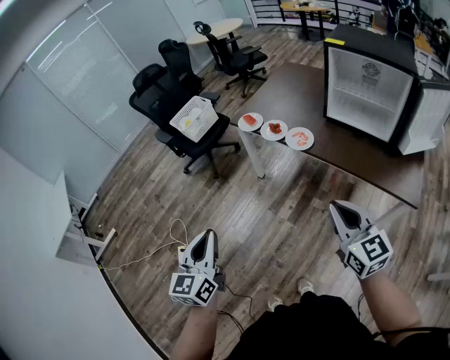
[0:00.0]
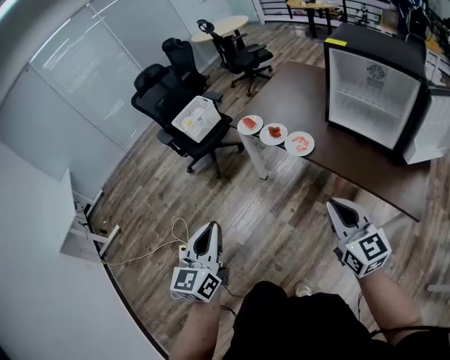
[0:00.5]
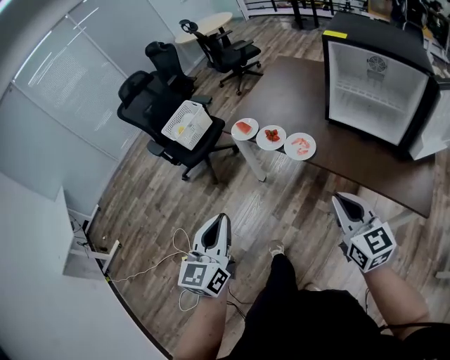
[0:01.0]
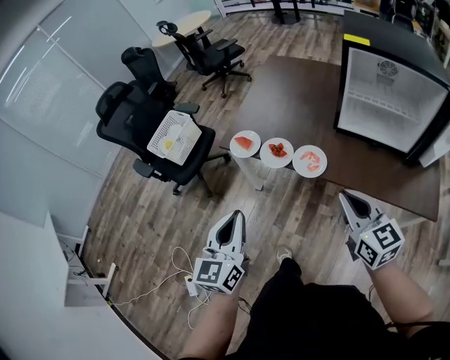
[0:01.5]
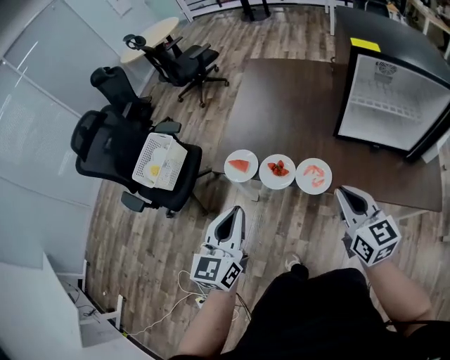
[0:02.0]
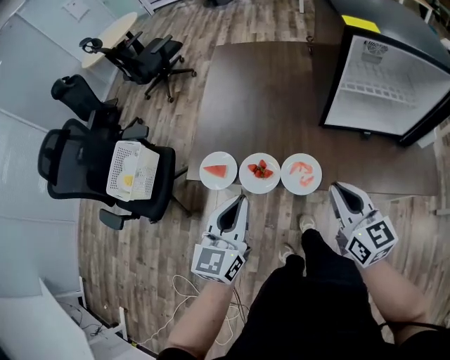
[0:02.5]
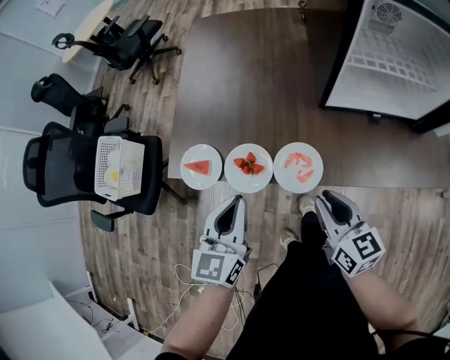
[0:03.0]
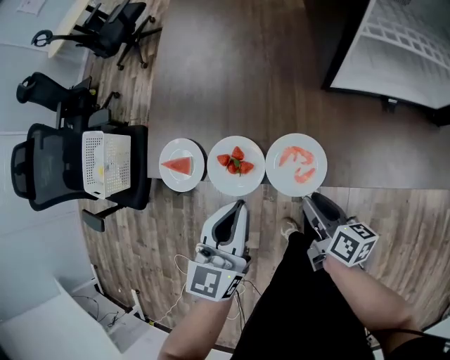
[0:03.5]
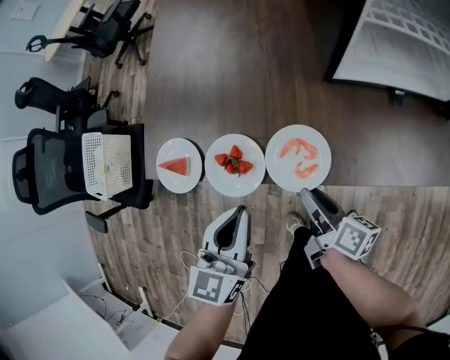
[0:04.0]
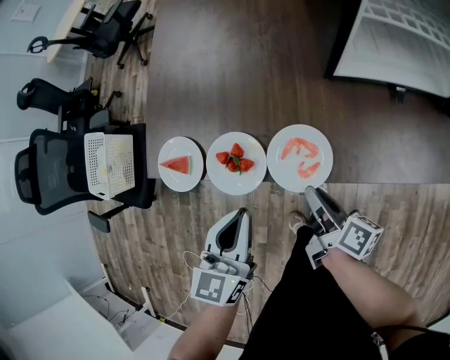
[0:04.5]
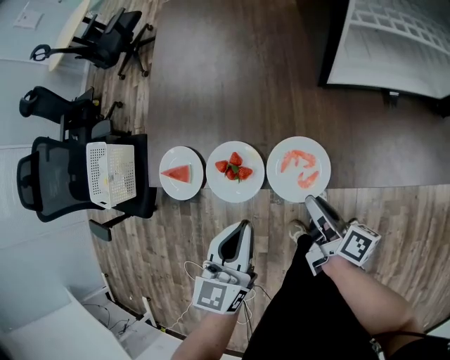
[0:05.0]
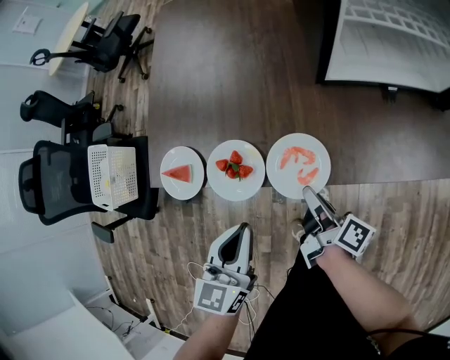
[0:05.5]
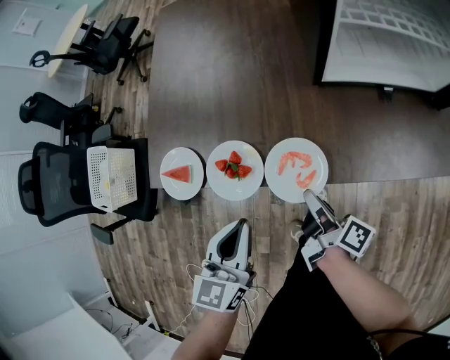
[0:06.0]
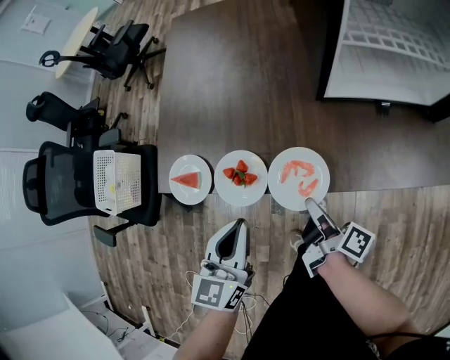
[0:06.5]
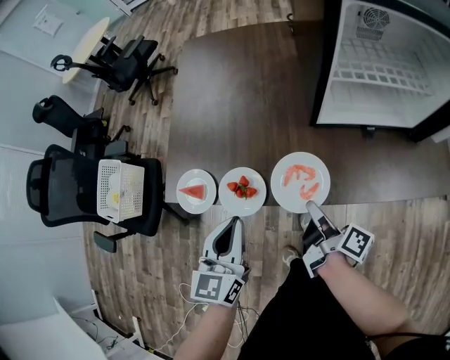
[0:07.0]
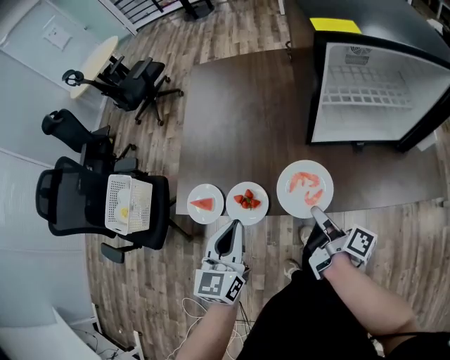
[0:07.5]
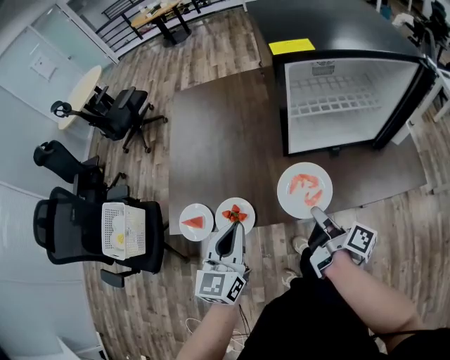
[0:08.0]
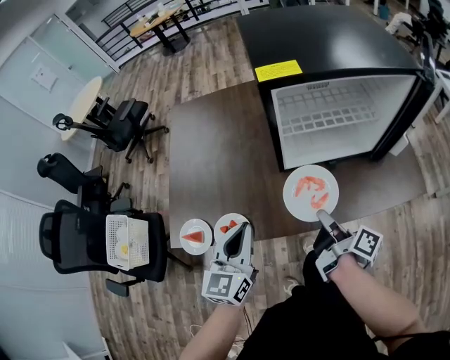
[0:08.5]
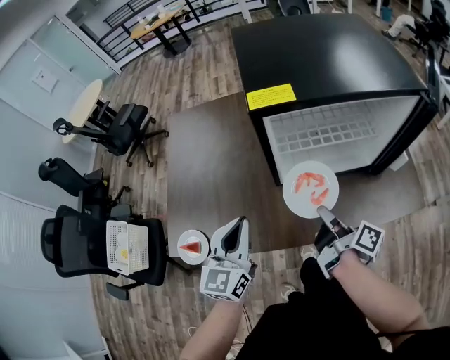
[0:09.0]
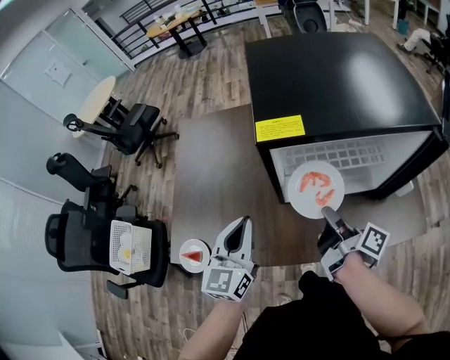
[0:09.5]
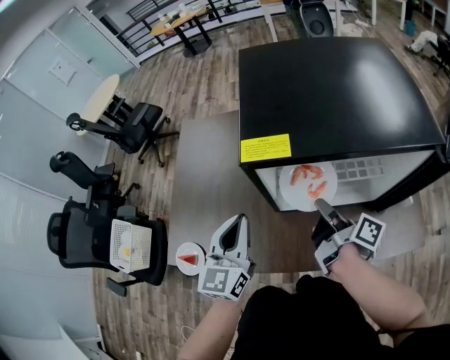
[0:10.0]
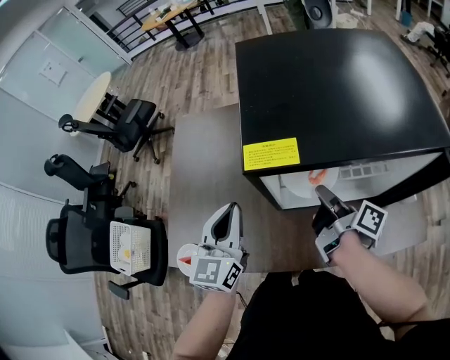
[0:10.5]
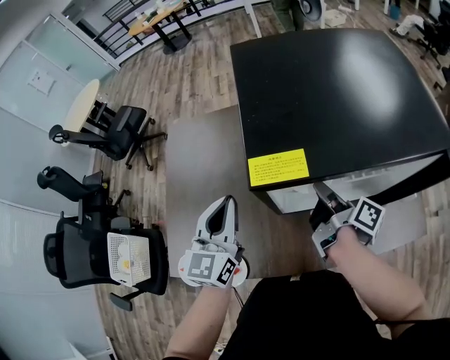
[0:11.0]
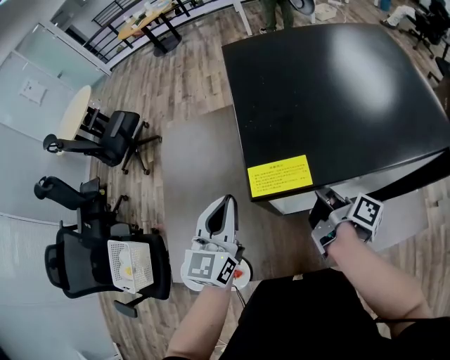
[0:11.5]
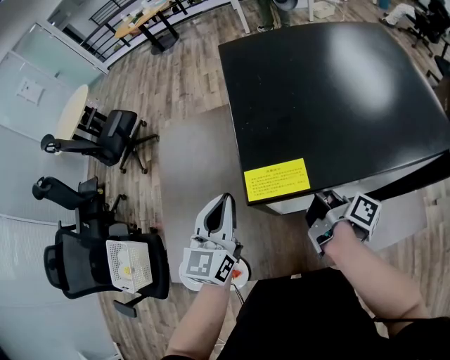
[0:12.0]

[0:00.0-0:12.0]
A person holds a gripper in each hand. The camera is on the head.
0:00.0 to 0:02.0: The left gripper shifts by roughly 50 cm, and rotates roughly 30 degrees.
0:02.0 to 0:04.0: The left gripper shifts approximately 20 cm downward.
0:06.0 to 0:08.0: The left gripper goes about 15 cm upward.
0:08.0 to 0:10.0: The left gripper ends up about 25 cm from where it was.
0:10.0 to 0:12.0: The left gripper changes place by approximately 10 cm.

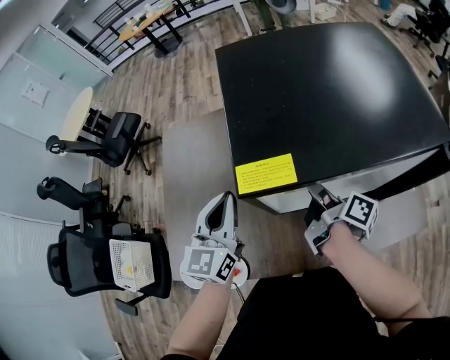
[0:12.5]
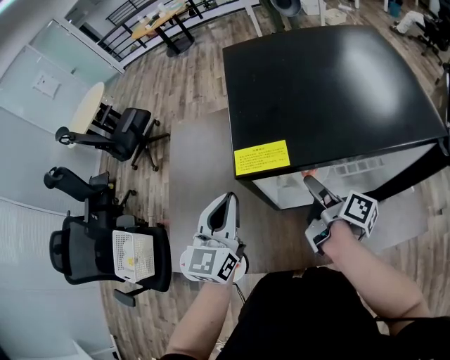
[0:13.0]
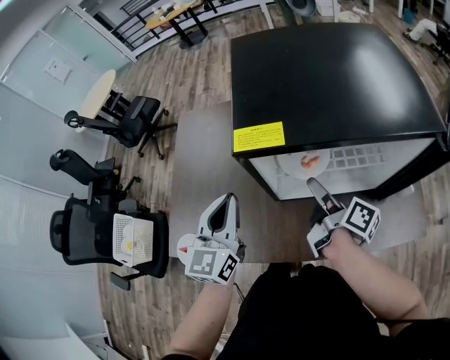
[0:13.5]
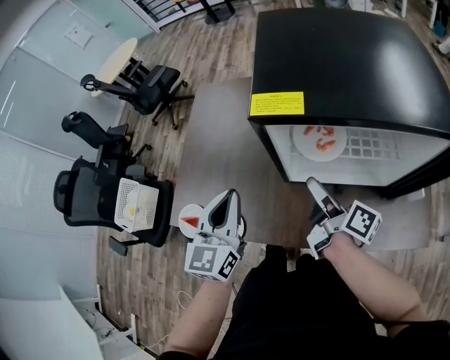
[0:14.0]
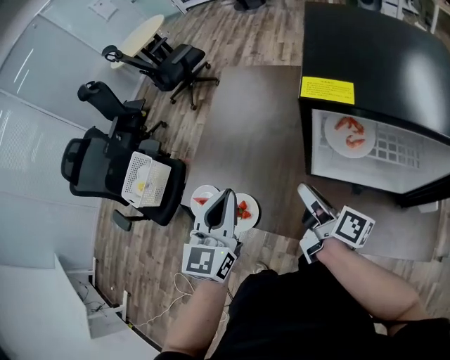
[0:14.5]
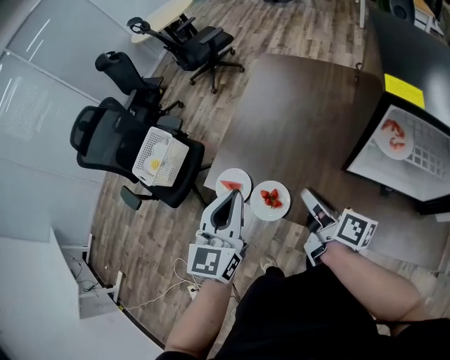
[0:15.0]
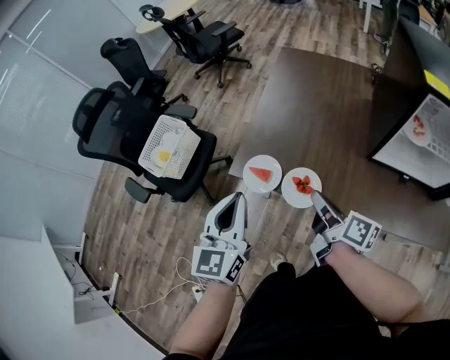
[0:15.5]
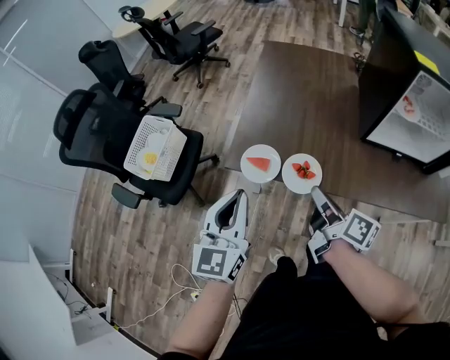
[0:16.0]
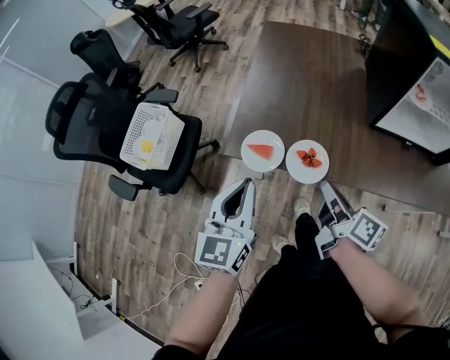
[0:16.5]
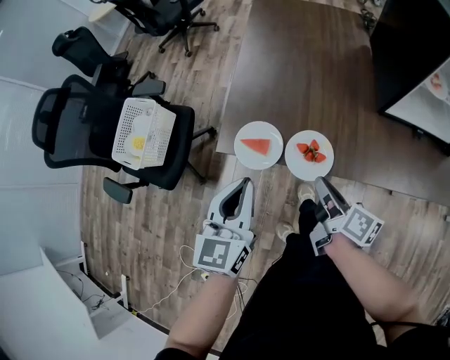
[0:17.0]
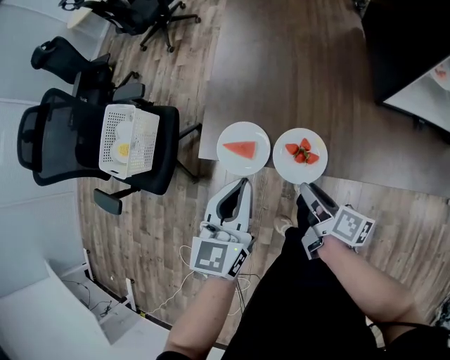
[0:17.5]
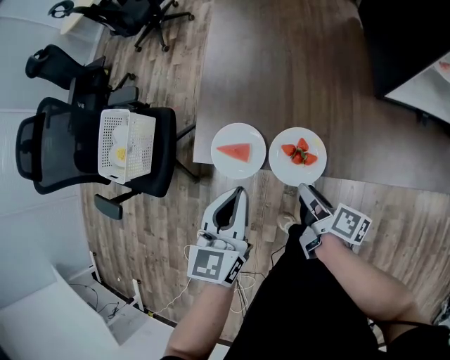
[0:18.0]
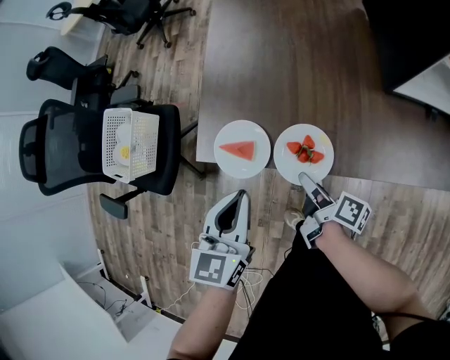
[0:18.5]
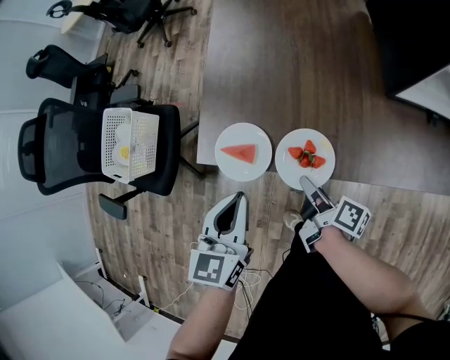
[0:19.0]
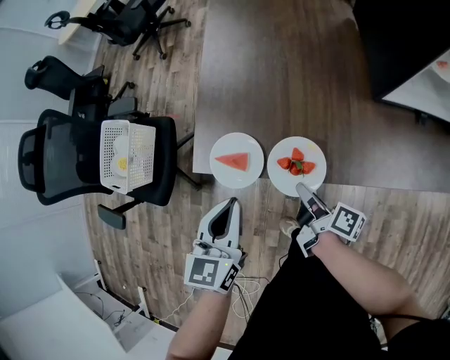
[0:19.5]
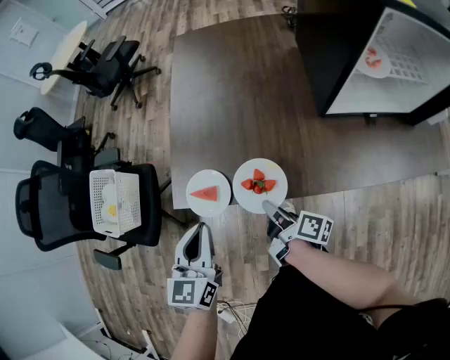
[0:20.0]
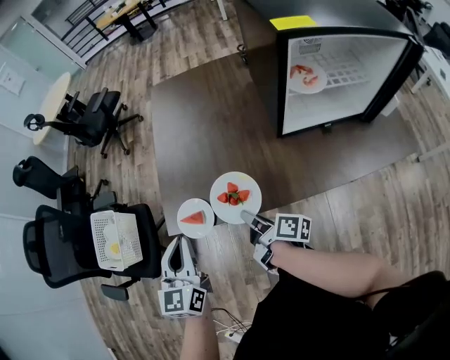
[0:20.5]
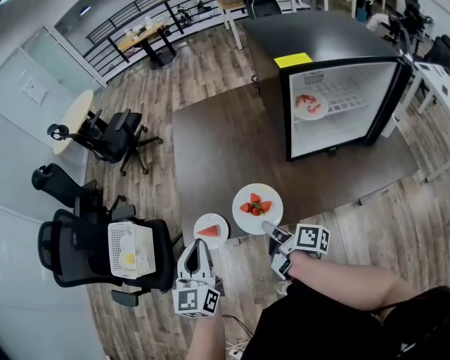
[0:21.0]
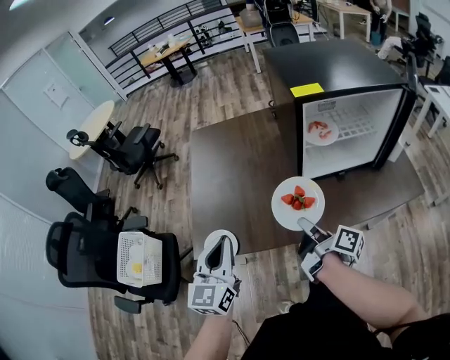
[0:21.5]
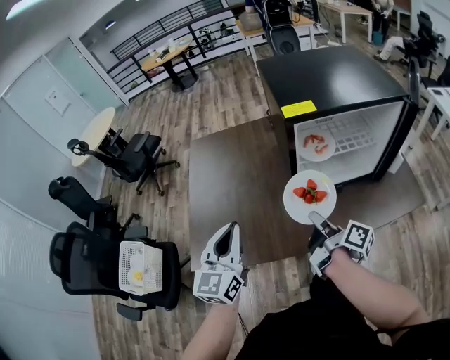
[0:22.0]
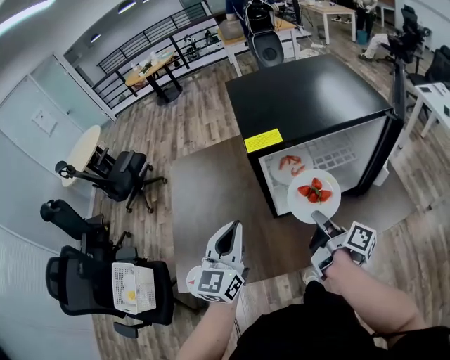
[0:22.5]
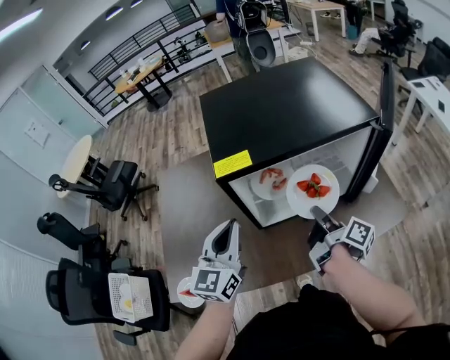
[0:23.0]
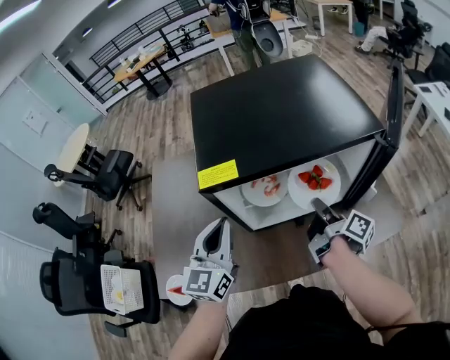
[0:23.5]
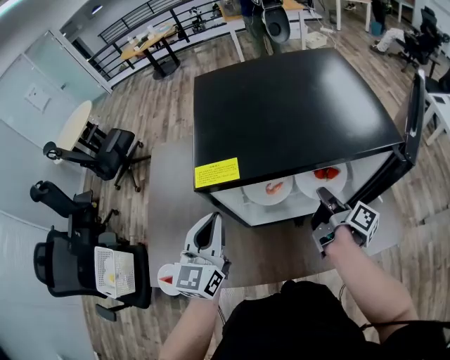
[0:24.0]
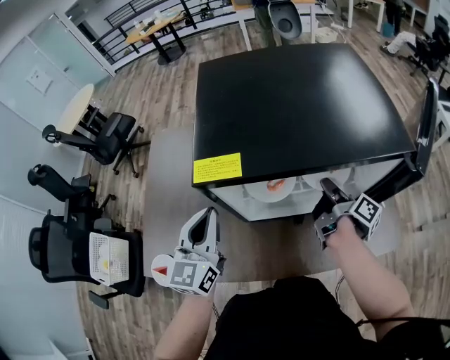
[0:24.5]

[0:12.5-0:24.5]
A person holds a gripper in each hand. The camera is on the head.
0:12.5 to 0:14.5: The left gripper changes place by some 20 cm, and turns by roughly 20 degrees.
0:14.5 to 0:16.5: The left gripper moves roughly 30 cm.
0:16.5 to 0:18.5: The left gripper moves downward, some 15 cm.
0:18.5 to 0:20.5: The left gripper shifts some 15 cm upward.
0:20.5 to 0:22.5: The left gripper changes place by some 30 cm, and rotates approximately 20 degrees.
0:22.5 to 0:24.5: The left gripper moves some 10 cm.

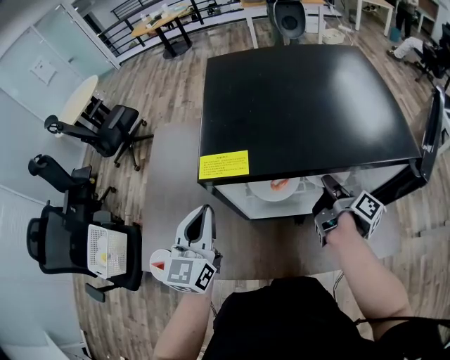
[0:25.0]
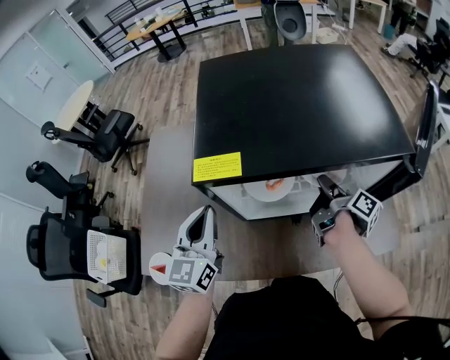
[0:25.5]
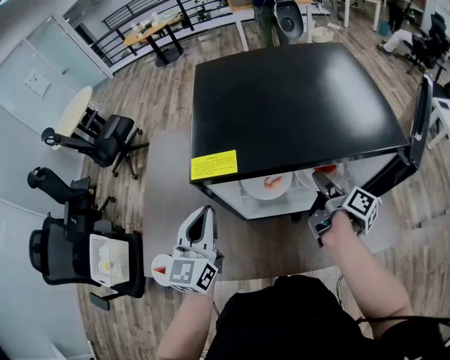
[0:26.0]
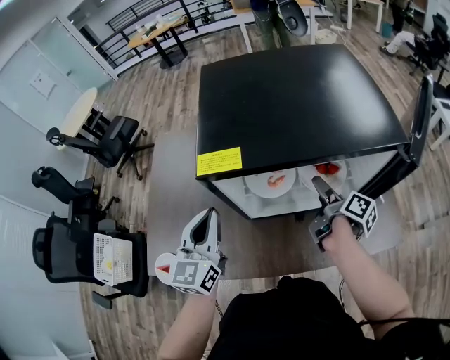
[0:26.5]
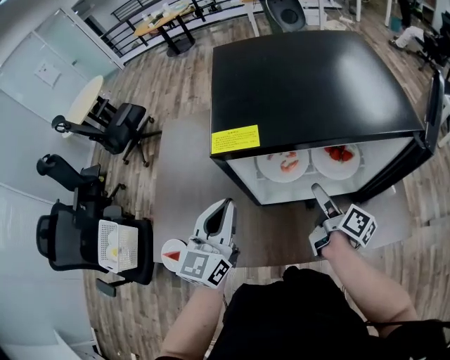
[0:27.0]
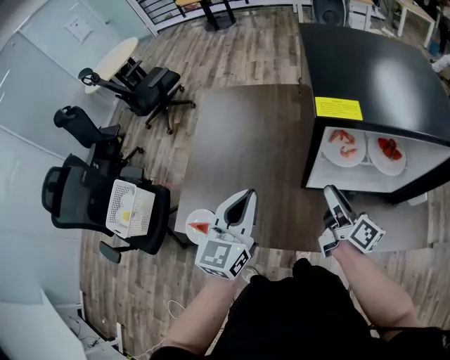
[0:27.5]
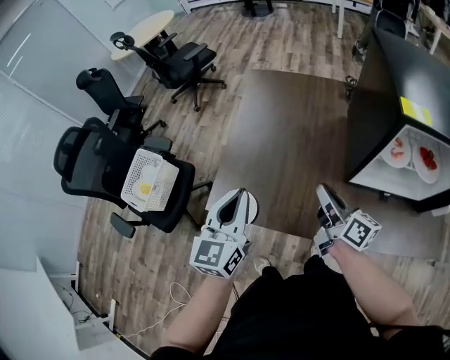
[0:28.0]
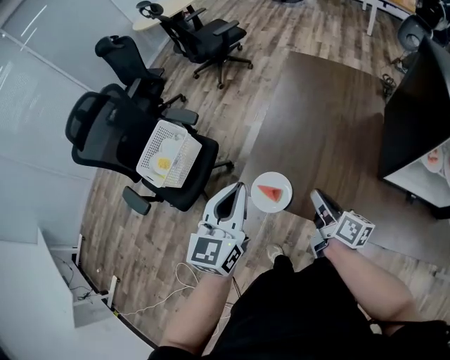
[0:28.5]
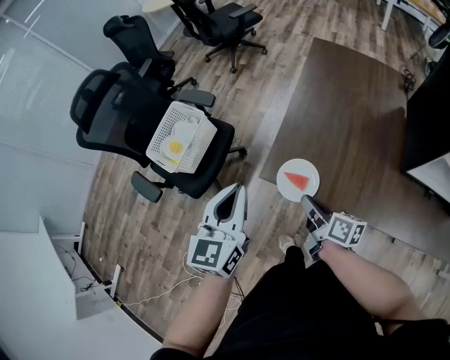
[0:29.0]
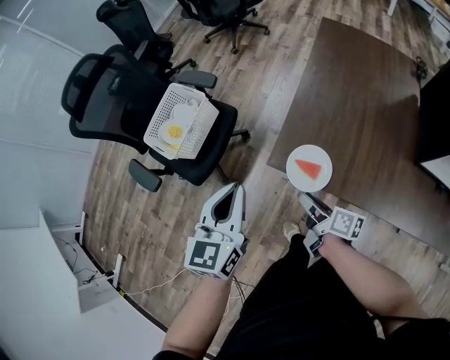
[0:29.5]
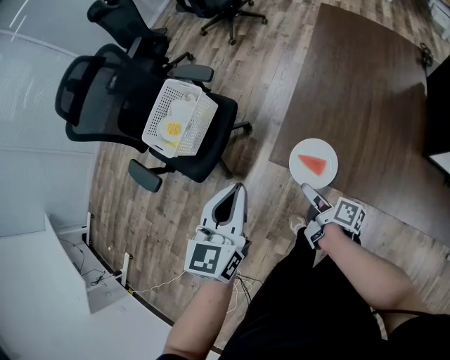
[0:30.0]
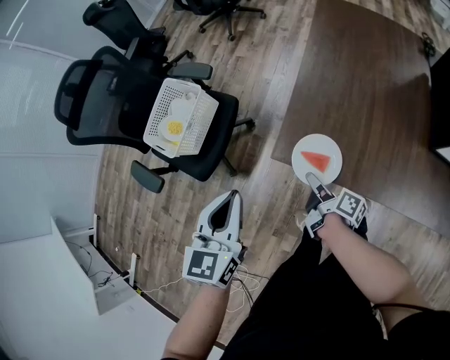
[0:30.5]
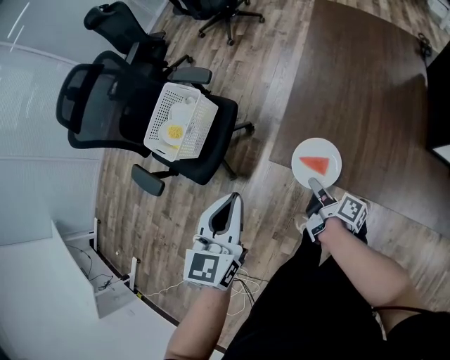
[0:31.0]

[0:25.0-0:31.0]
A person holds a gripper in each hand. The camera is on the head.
0:27.0 to 0:29.0: The left gripper shifts by about 60 cm, and turns by some 30 degrees.
0:29.0 to 0:31.0: The left gripper travels downward by about 5 cm.
